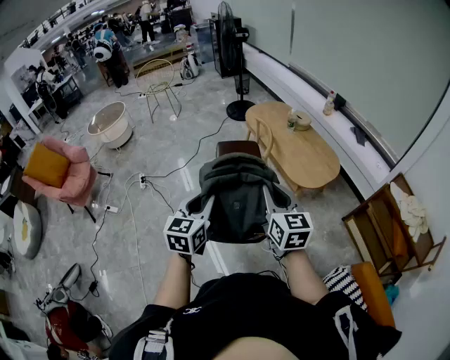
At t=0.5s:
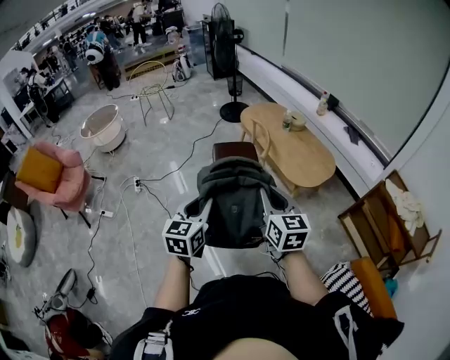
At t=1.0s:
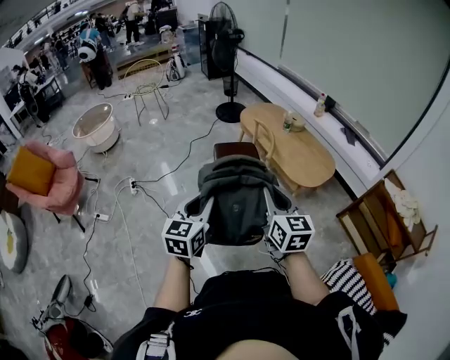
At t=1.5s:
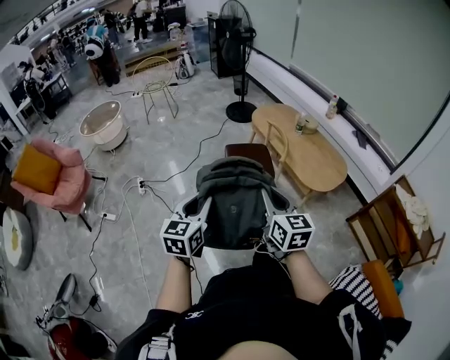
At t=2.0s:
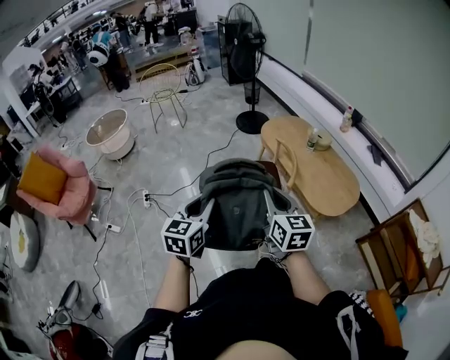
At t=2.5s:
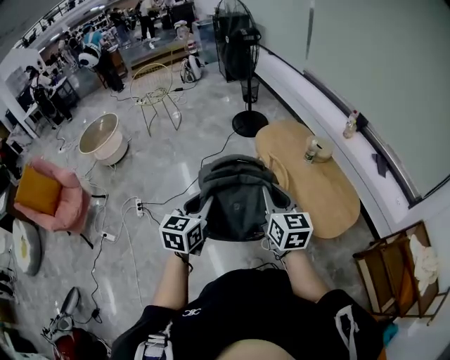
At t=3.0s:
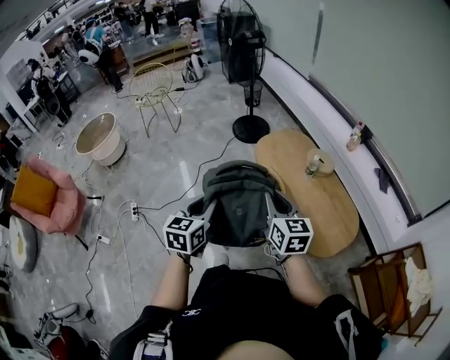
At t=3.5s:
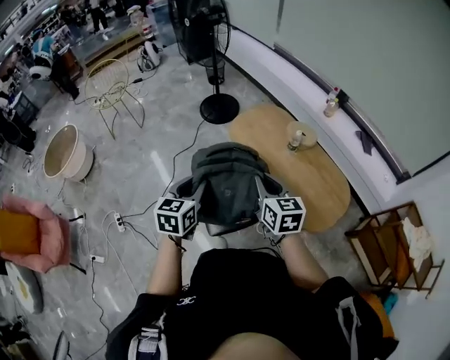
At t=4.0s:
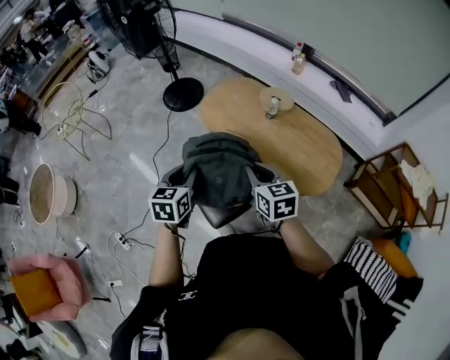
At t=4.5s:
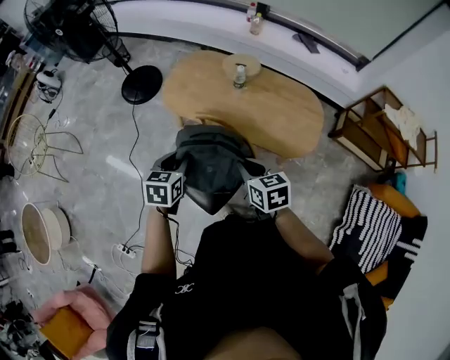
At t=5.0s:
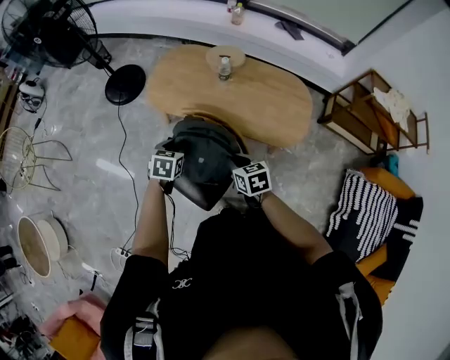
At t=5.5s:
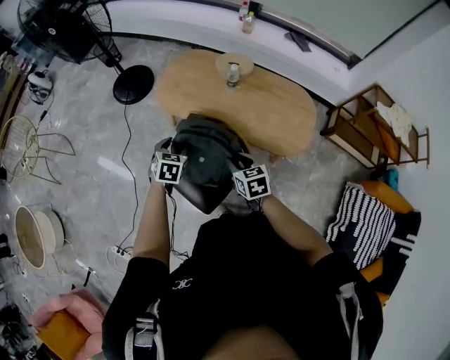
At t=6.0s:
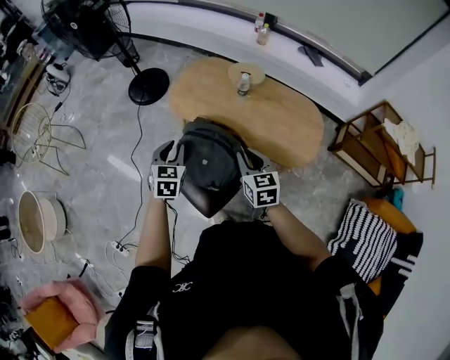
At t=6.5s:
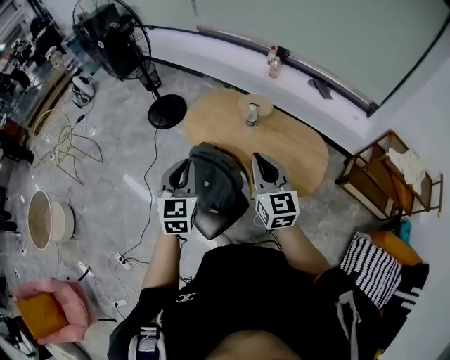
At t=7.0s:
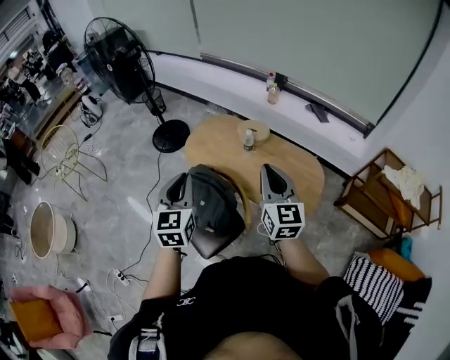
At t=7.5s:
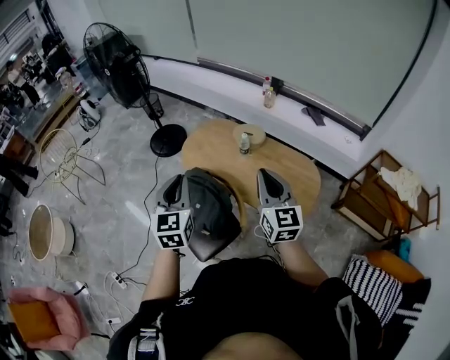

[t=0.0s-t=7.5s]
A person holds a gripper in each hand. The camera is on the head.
t=0.0s to t=2.0s: Both grippers move forward and to the left, approximately 30 cm.
t=2.0s to t=4.0s: Both grippers are carried forward, approximately 60 cm. The left gripper rotates approximately 30 degrees; the right gripper changes its angle by some 20 degrees.
t=4.0s to t=5.5s: The left gripper shifts about 20 cm downward and forward, changes its angle by roughly 30 degrees, and opens up, while the right gripper goes roughly 15 cm downward.
t=5.5s to t=7.5s: The left gripper travels upward by some 30 cm, tilts its fingers about 40 degrees upward, and closes its fingers, while the right gripper travels upward and to the right by roughly 35 cm, tilts its fingers some 40 degrees upward, and closes.

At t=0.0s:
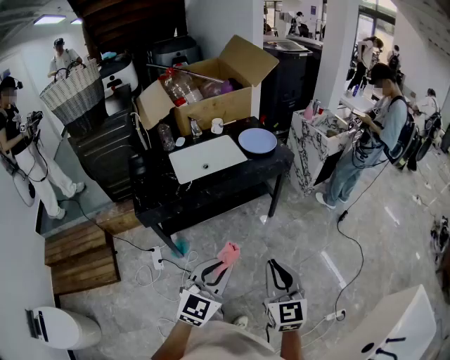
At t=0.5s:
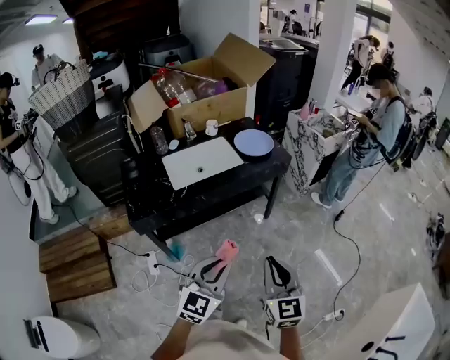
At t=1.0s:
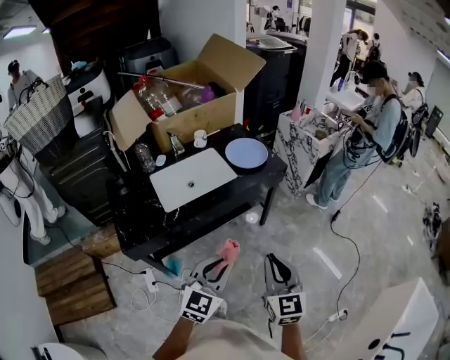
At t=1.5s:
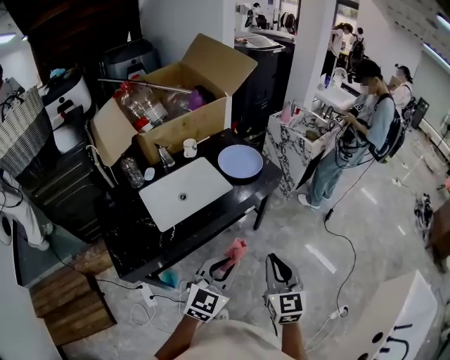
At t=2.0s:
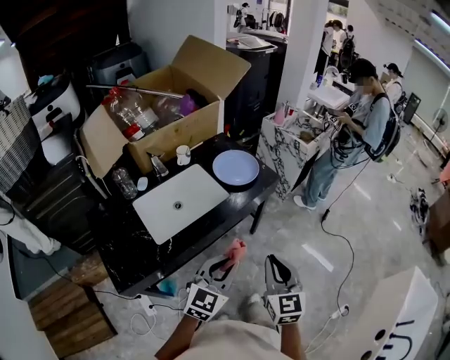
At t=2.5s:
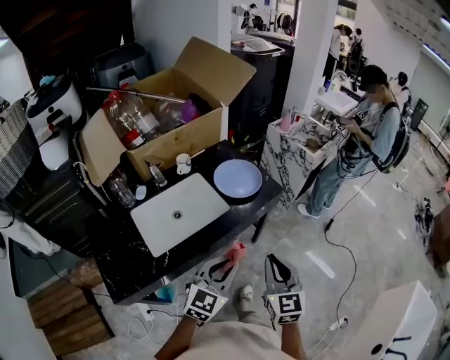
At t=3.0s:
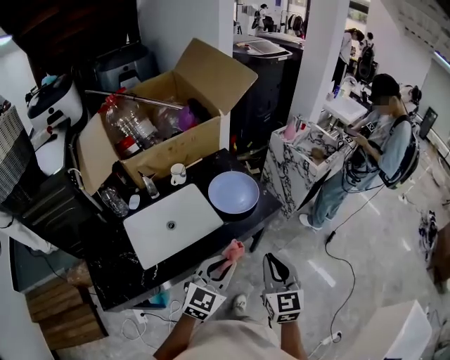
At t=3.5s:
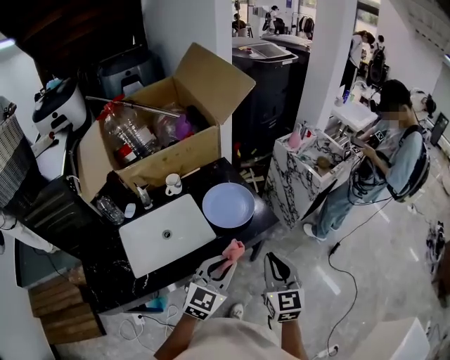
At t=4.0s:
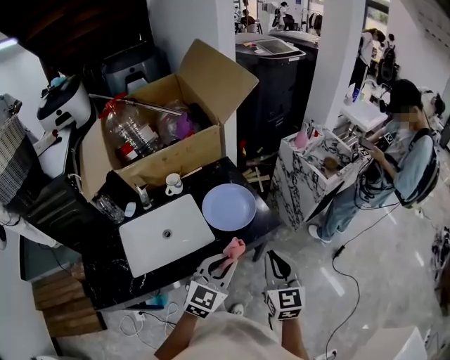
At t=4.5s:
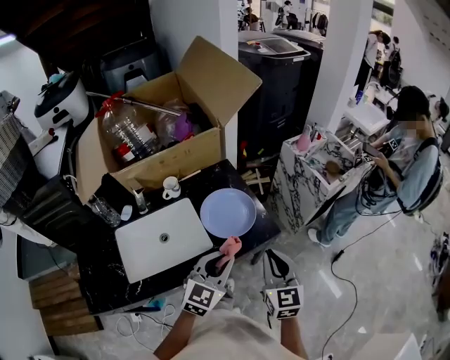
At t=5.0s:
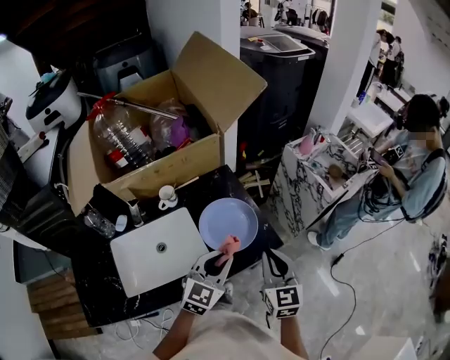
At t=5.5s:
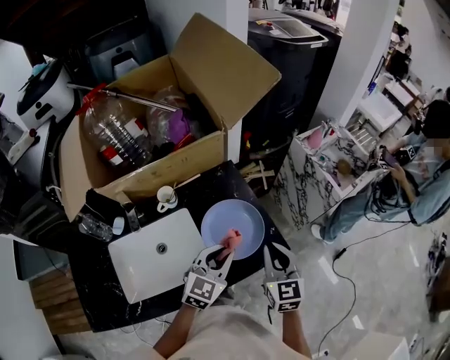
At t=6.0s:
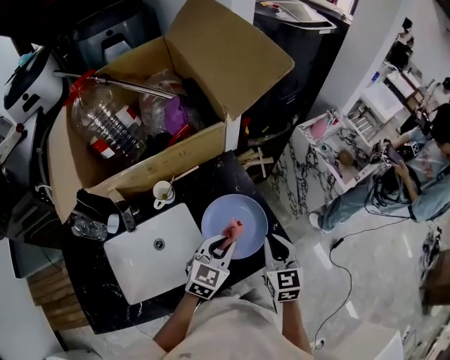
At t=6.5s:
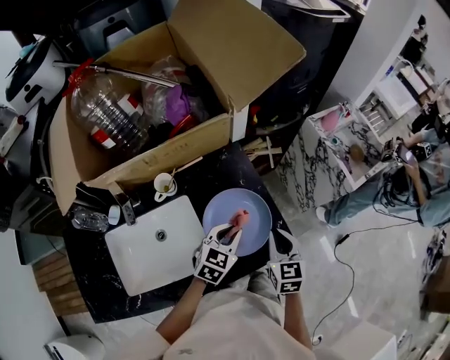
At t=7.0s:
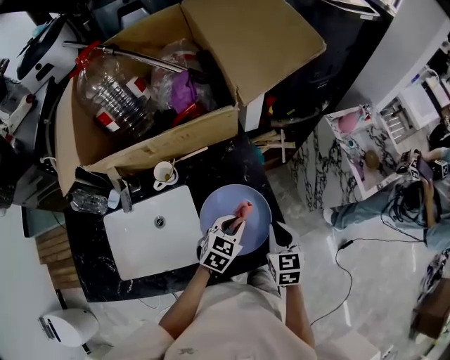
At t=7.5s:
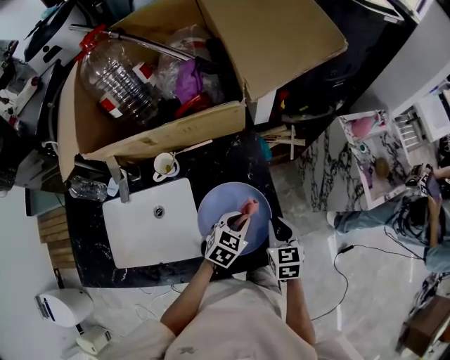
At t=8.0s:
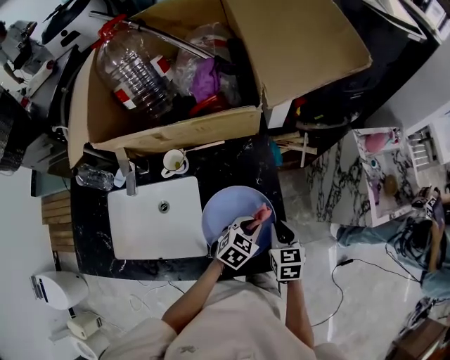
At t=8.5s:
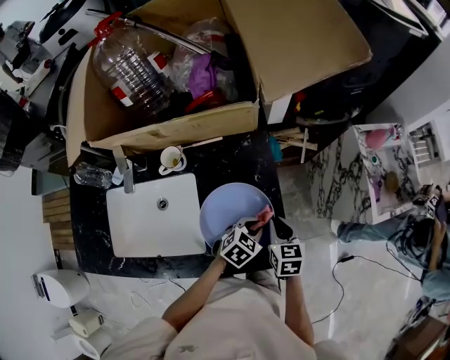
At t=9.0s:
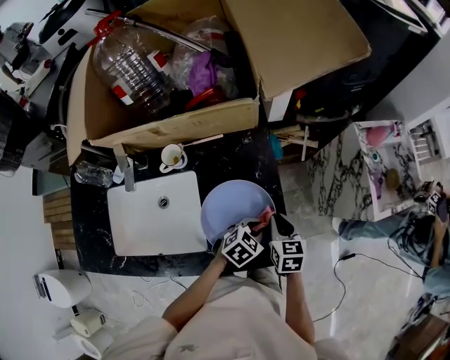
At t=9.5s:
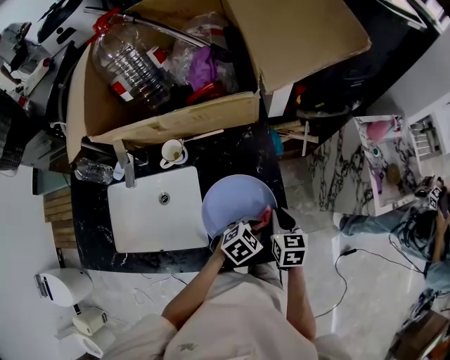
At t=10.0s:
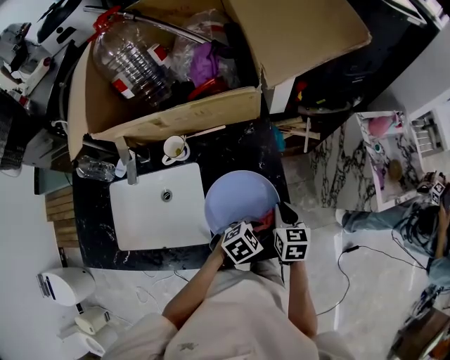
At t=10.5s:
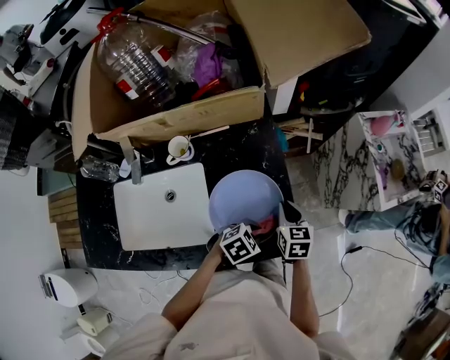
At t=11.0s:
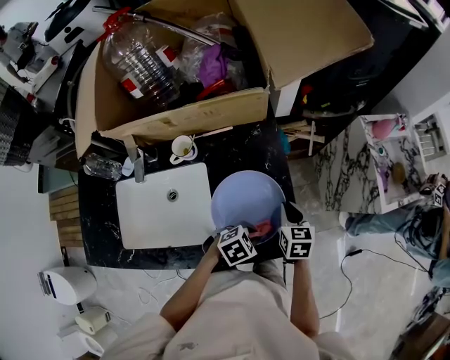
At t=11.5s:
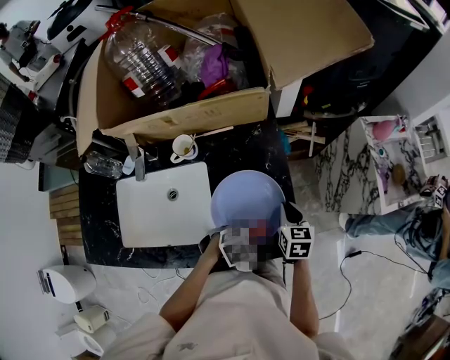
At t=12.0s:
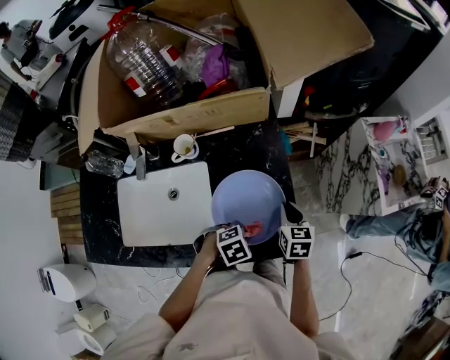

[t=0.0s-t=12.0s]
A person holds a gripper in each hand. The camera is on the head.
t=0.0s to t=2.0s: The two grippers go some 30 cm forward.
t=2.0s to t=4.0s: Both grippers travel together forward, roughly 30 cm.
t=4.0s to t=6.0s: The two grippers go approximately 25 cm forward.
t=6.0s to t=8.0s: The left gripper moves downward, forward and to the right, some 20 cm, and rotates some 20 degrees. The right gripper is displaced downward and forward by about 15 cm, and swivels roughly 30 degrees.
t=8.0s to t=10.0s: The left gripper shifts approximately 5 cm backward, and turns by approximately 20 degrees.
t=10.0s to t=12.0s: The left gripper heads backward, covering about 5 cm.

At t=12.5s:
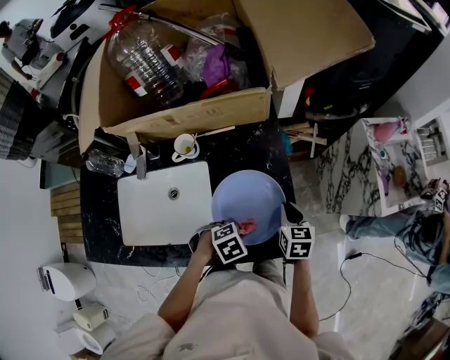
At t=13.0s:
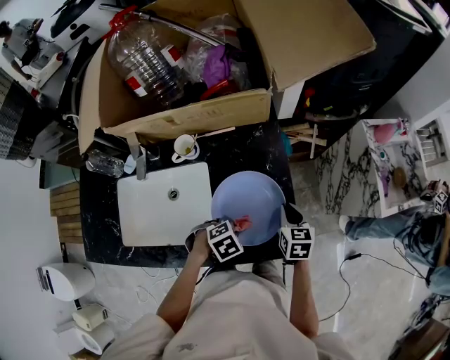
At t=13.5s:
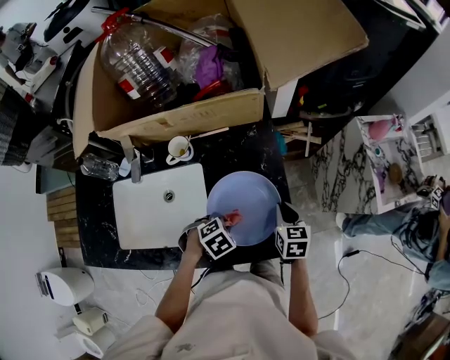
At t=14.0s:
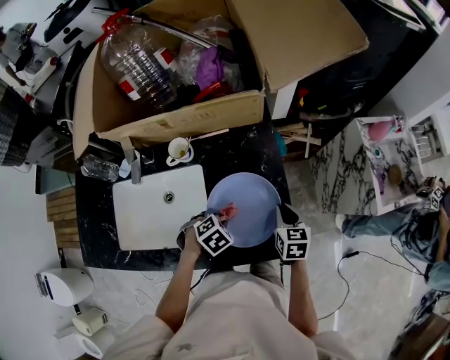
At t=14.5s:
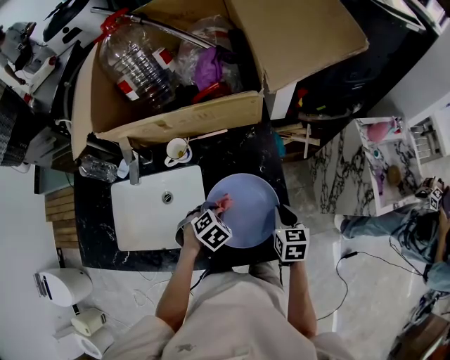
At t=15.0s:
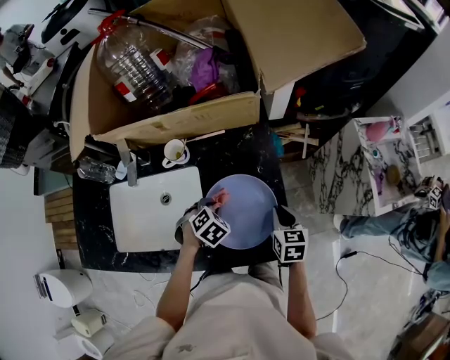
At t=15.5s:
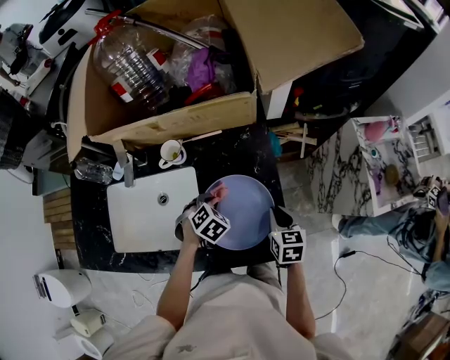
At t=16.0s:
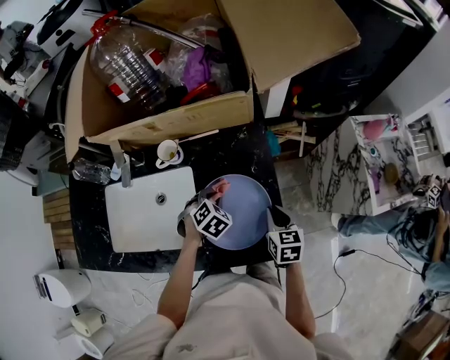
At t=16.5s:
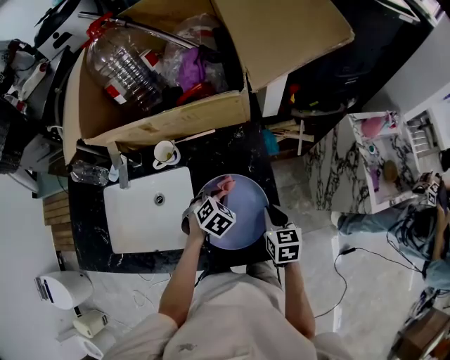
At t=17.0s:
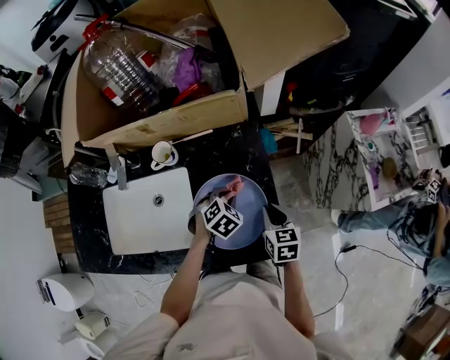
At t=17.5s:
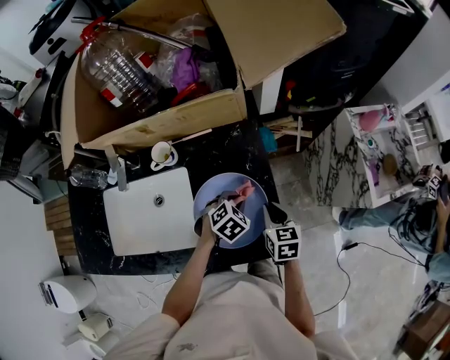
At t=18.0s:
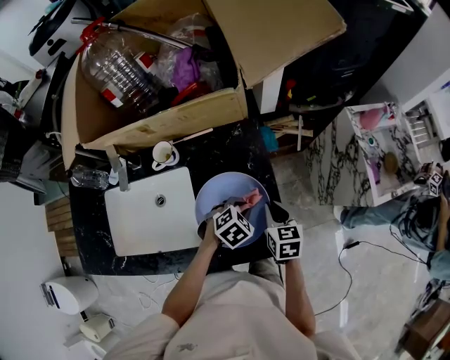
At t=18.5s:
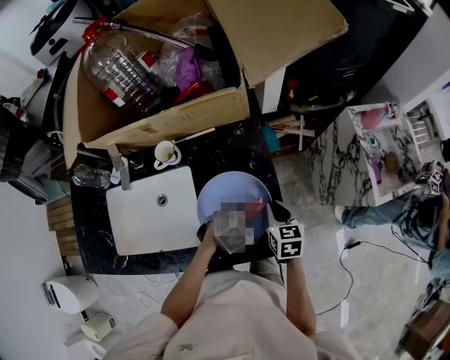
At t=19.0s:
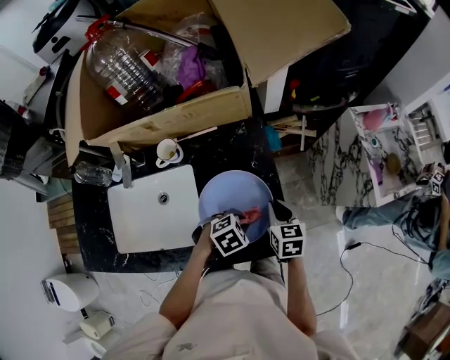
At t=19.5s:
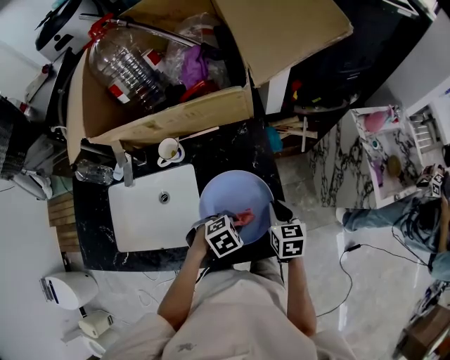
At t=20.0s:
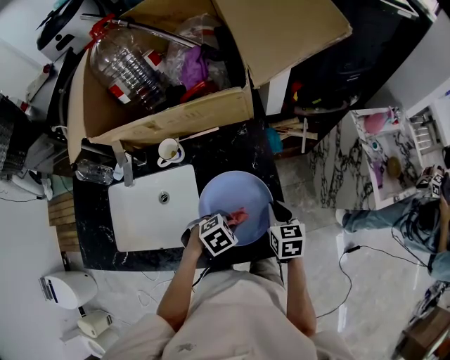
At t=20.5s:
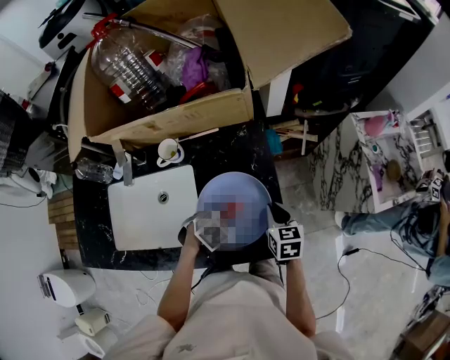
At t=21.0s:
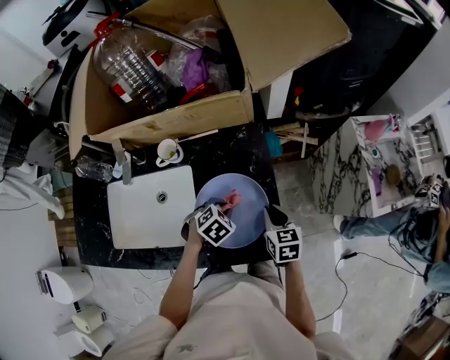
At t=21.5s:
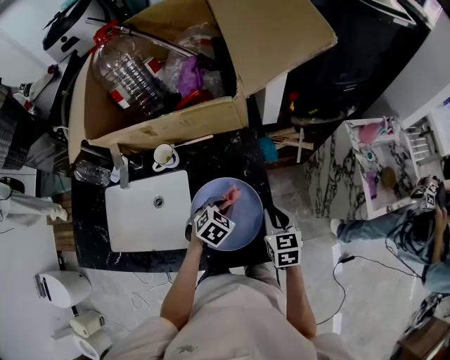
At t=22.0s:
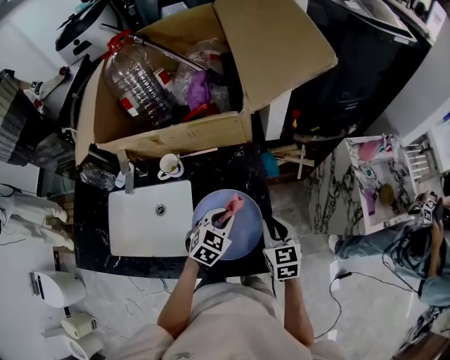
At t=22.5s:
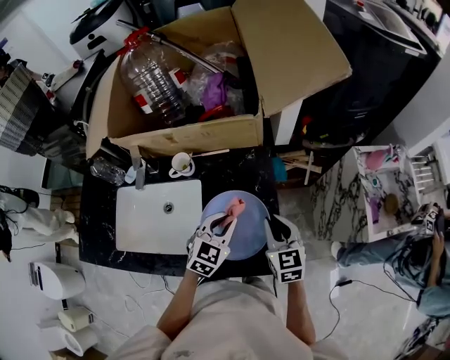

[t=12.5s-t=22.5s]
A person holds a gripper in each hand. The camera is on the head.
t=12.5s to t=14.5s: The left gripper shifts by some 10 cm, and turns by approximately 20 degrees.
t=14.5s to t=16.5s: The left gripper heads forward and to the right, covering about 10 cm.
t=16.5s to t=18.5s: The left gripper changes place by about 10 cm, and turns by about 20 degrees.
t=18.5s to t=20.5s: The left gripper heads to the left, covering approximately 5 cm.
t=20.5s to t=22.5s: The two grippers go roughly 10 cm upward. The right gripper rotates some 20 degrees. The left gripper angles its fingers upward, by roughly 40 degrees.
